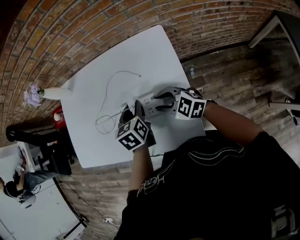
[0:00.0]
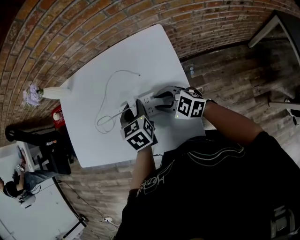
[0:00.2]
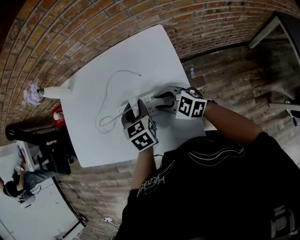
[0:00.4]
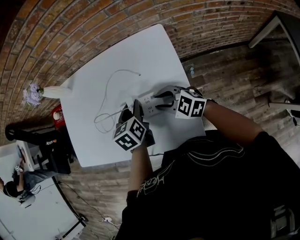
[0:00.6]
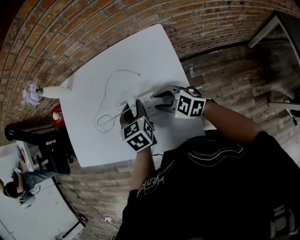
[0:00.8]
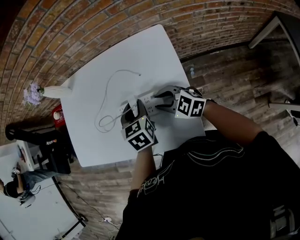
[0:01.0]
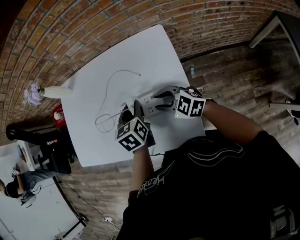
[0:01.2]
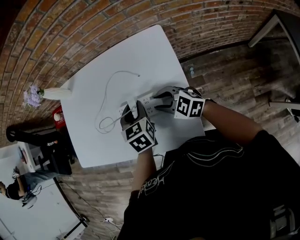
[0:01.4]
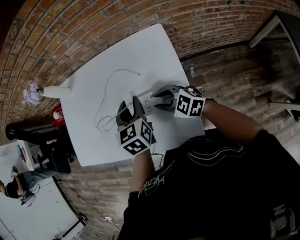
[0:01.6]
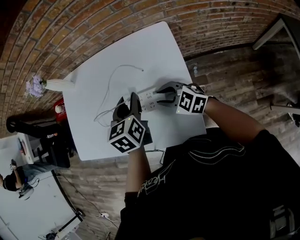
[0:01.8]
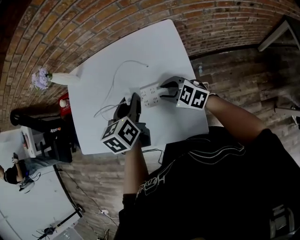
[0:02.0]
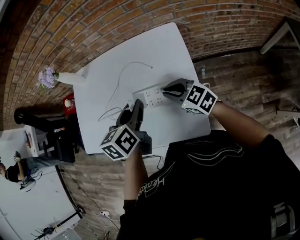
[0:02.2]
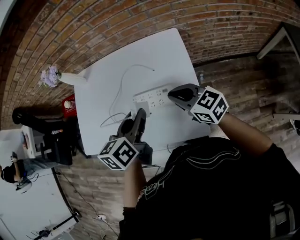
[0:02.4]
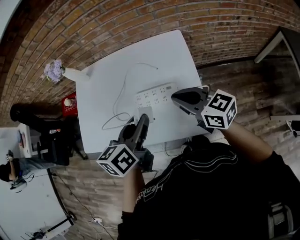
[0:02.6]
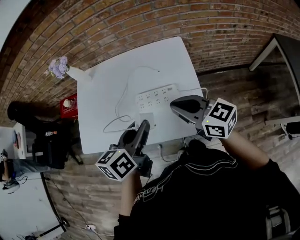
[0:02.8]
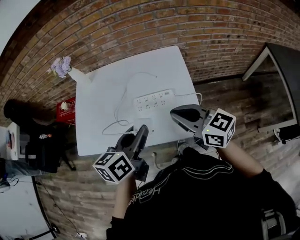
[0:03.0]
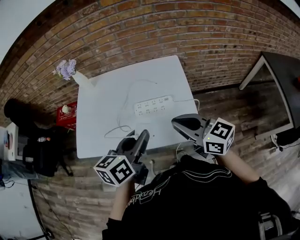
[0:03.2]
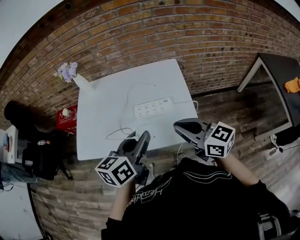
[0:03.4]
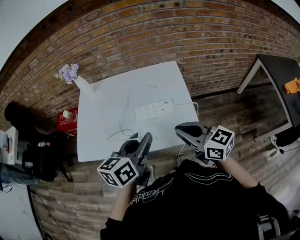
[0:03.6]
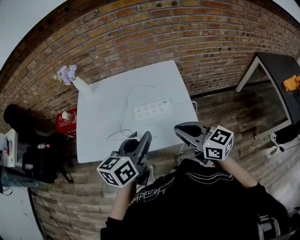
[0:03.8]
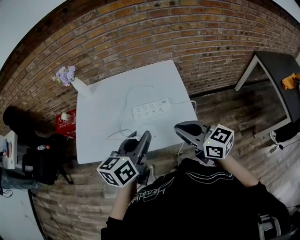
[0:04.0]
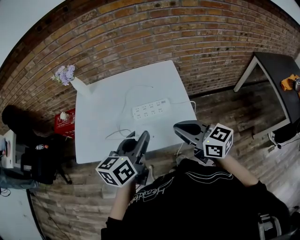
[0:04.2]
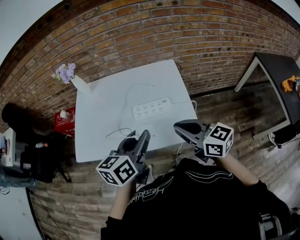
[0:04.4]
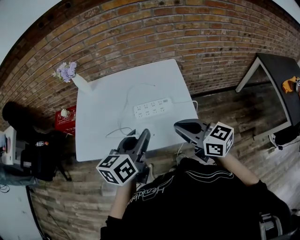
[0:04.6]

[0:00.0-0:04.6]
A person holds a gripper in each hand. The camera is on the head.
0:00.0 to 0:01.6: The left gripper shifts by approximately 5 cm.
0:01.6 to 0:03.0: The right gripper moves upward and backward, some 25 cm, turns by about 30 degrees, and closes up; the left gripper moves backward, upward and to the left, some 25 cm, and swivels roughly 40 degrees.
0:03.0 to 0:04.6: The right gripper shifts approximately 5 cm backward.

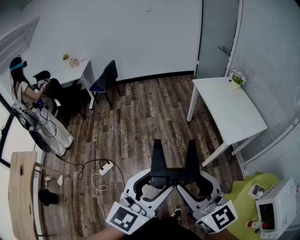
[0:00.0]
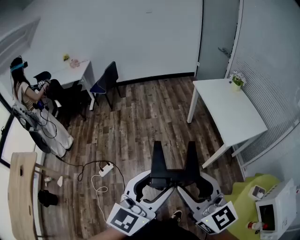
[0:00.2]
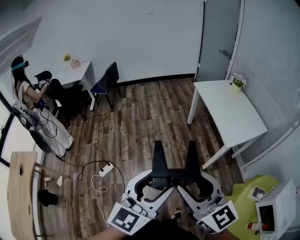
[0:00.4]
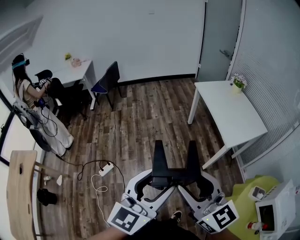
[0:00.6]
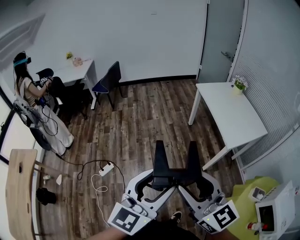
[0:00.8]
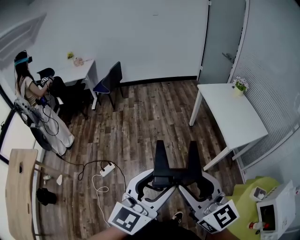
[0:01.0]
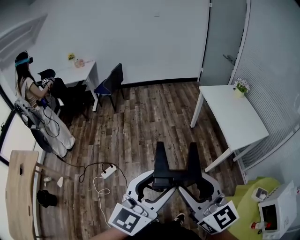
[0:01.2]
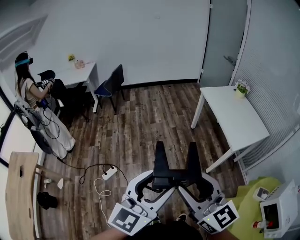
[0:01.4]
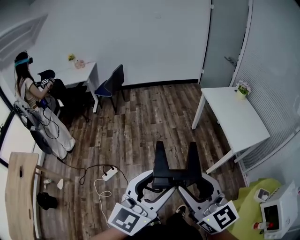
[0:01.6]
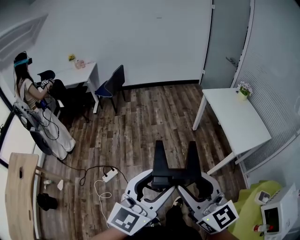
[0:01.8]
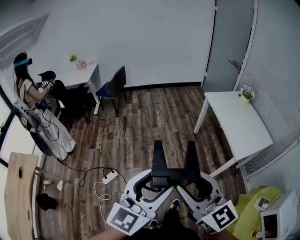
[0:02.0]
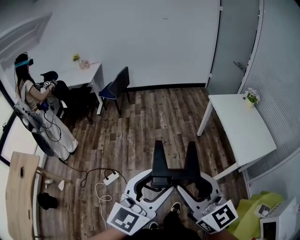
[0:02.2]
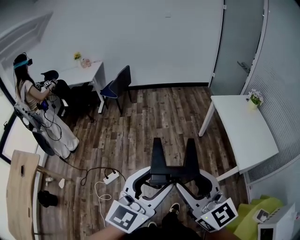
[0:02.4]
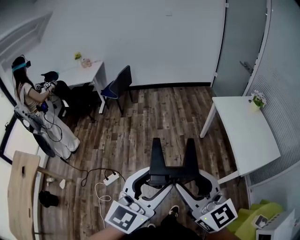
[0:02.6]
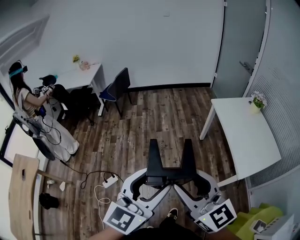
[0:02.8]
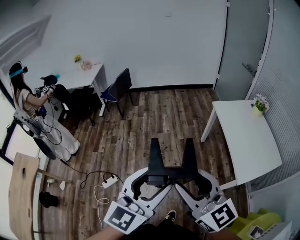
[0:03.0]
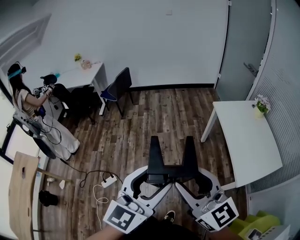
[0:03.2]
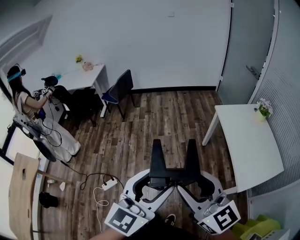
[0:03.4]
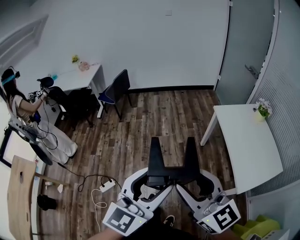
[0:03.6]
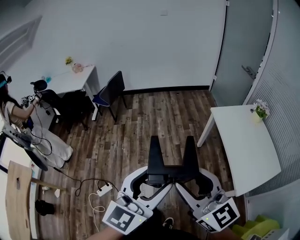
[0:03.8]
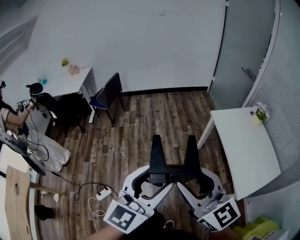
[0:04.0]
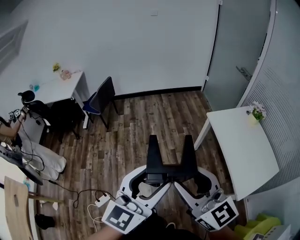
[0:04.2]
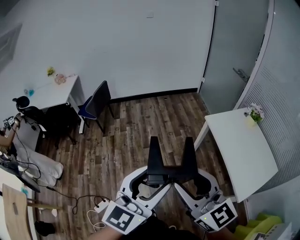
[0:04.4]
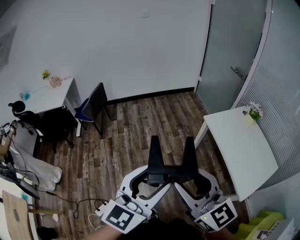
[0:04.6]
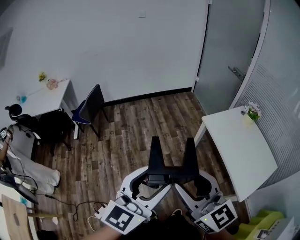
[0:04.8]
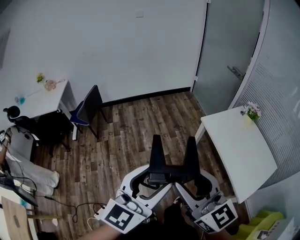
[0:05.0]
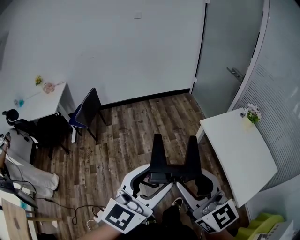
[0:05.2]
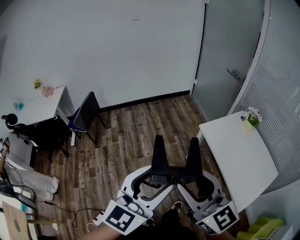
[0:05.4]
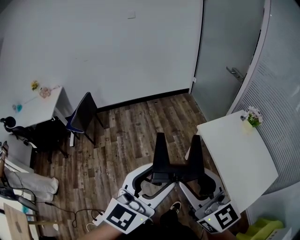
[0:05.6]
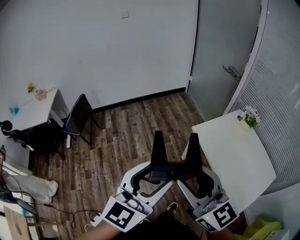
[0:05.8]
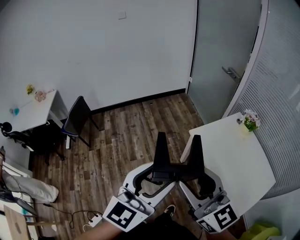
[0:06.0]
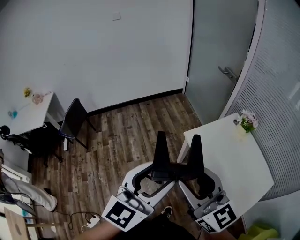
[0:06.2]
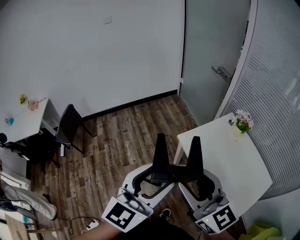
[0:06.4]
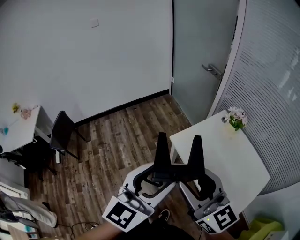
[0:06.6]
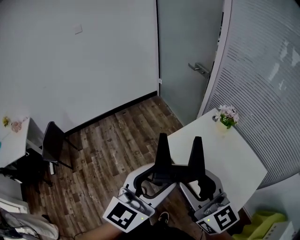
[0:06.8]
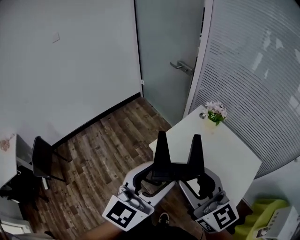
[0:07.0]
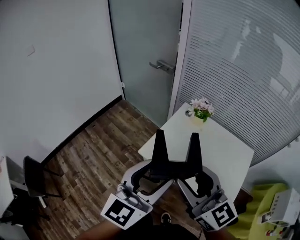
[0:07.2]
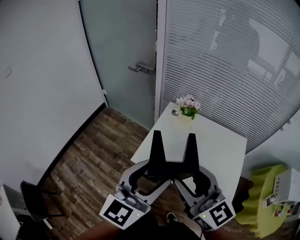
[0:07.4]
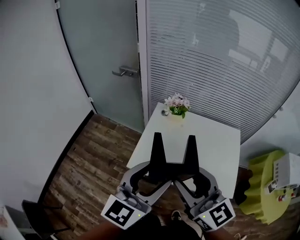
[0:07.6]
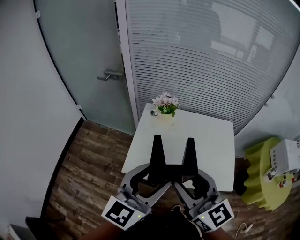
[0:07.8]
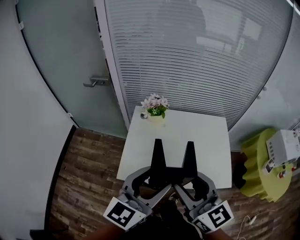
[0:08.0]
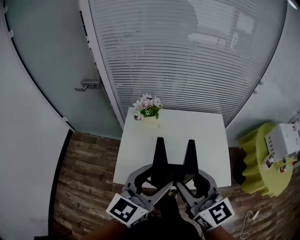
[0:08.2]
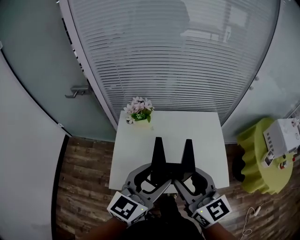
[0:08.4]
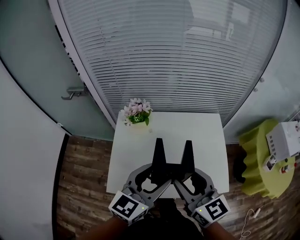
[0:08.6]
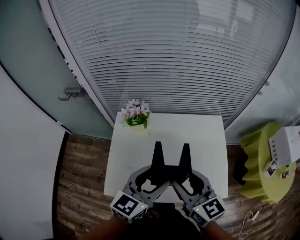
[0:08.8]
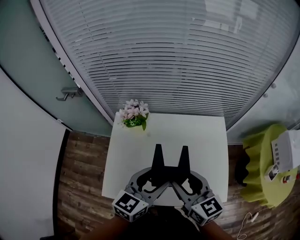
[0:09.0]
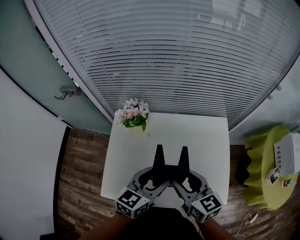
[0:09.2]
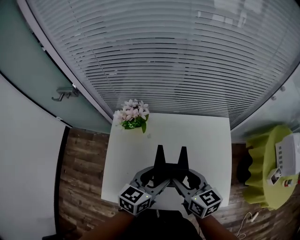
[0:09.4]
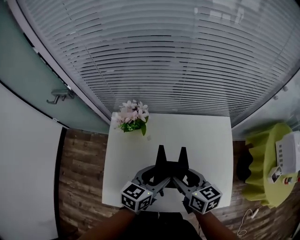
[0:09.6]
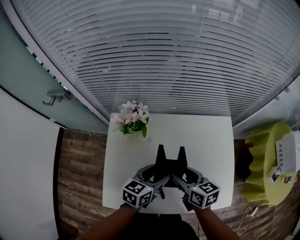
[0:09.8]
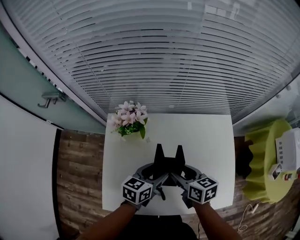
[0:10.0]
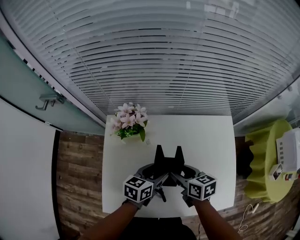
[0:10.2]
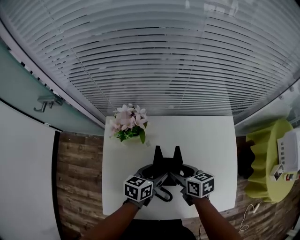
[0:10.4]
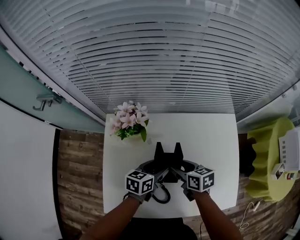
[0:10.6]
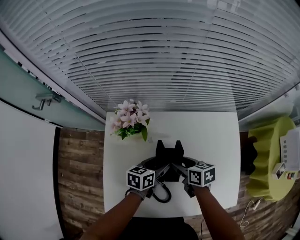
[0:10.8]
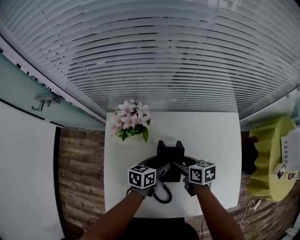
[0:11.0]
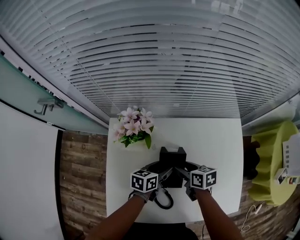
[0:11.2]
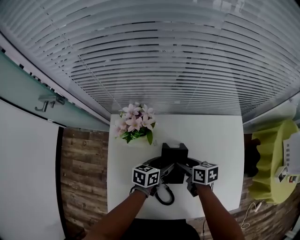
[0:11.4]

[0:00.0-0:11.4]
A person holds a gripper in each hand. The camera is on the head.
0:00.0 to 0:01.4: The two grippers go roughly 10 cm to the left.
0:01.4 to 0:02.8: The two grippers go some 20 cm forward.
0:02.8 to 0:04.2: Both grippers move forward, roughly 25 cm.
0:04.2 to 0:05.6: The two grippers go some 20 cm forward.
0:05.6 to 0:07.2: The left gripper changes place by roughly 35 cm, and swivels roughly 30 degrees. The right gripper changes place by some 30 cm, and rotates about 30 degrees.
0:07.2 to 0:08.6: The left gripper changes place by approximately 25 cm, and changes its angle by roughly 40 degrees. Meanwhile the right gripper changes place by about 25 cm, and rotates about 40 degrees.
0:08.6 to 0:10.0: Both grippers travel together downward and forward, roughly 30 cm. The right gripper turns by some 40 degrees, while the left gripper turns by approximately 30 degrees.
0:10.0 to 0:11.4: Both grippers move downward and forward, about 15 cm.

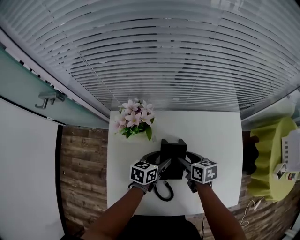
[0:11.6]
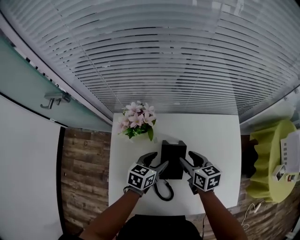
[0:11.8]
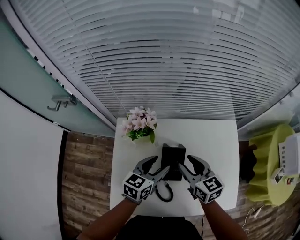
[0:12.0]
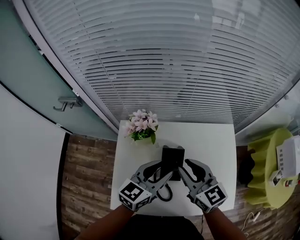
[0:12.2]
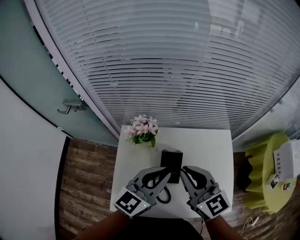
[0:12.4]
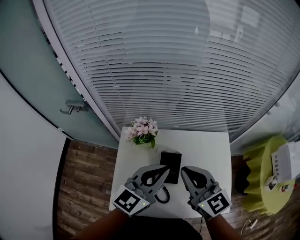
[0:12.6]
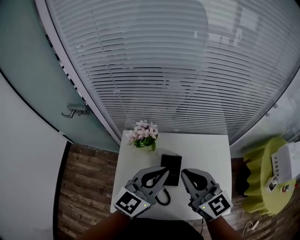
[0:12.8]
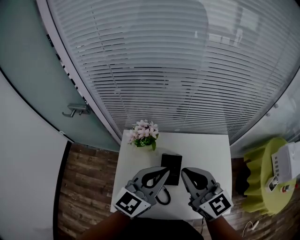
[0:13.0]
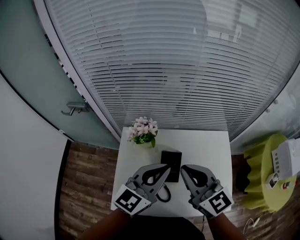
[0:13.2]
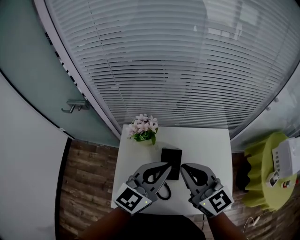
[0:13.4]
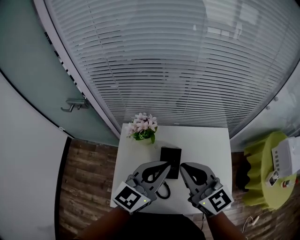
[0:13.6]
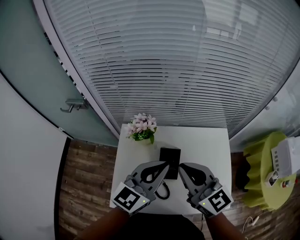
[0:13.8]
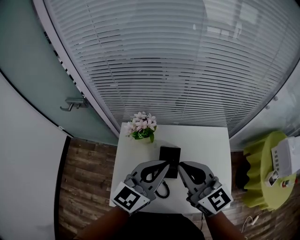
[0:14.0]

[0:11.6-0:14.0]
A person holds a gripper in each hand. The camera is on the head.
0:11.6 to 0:12.8: Both grippers move upward, roughly 35 cm. The left gripper swivels approximately 50 degrees, and closes up. The right gripper tilts its fingers approximately 40 degrees upward, and closes.
0:12.8 to 0:14.0: Both grippers stay put.

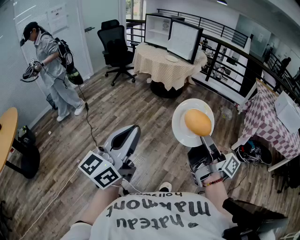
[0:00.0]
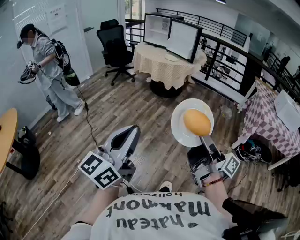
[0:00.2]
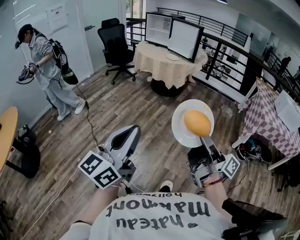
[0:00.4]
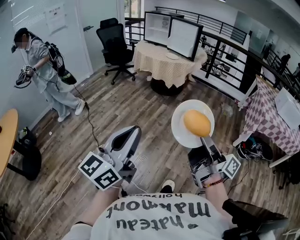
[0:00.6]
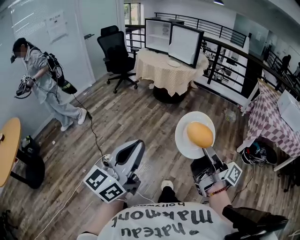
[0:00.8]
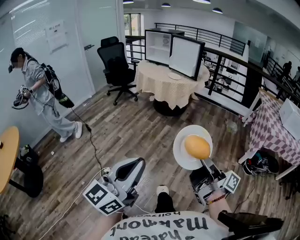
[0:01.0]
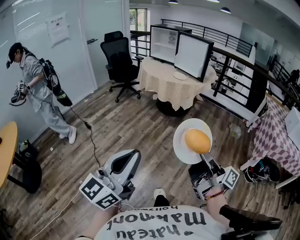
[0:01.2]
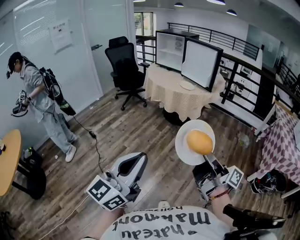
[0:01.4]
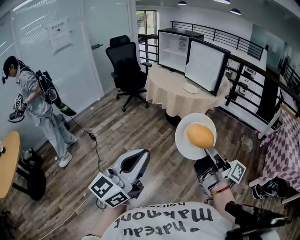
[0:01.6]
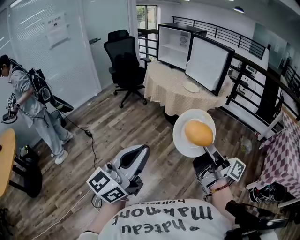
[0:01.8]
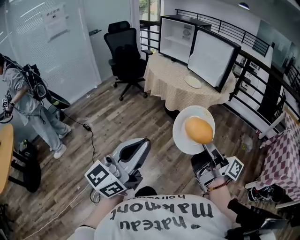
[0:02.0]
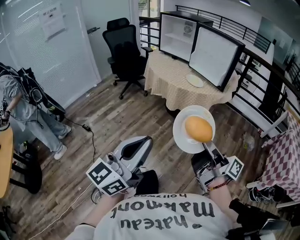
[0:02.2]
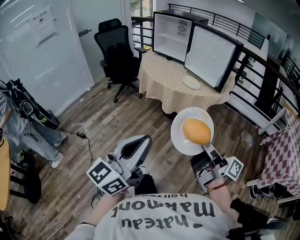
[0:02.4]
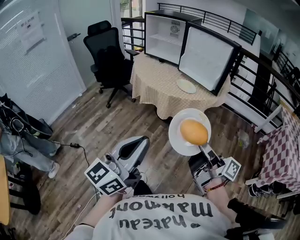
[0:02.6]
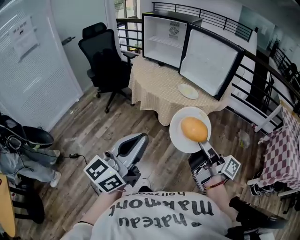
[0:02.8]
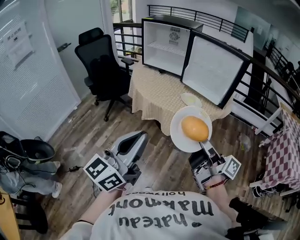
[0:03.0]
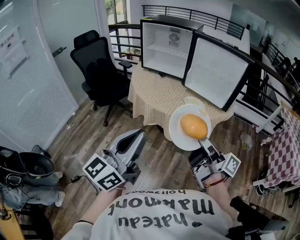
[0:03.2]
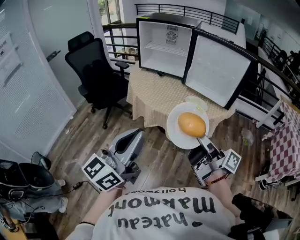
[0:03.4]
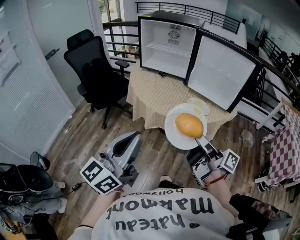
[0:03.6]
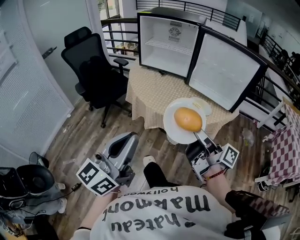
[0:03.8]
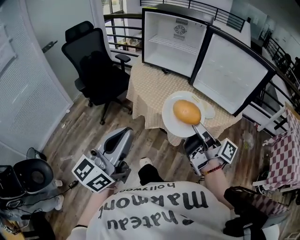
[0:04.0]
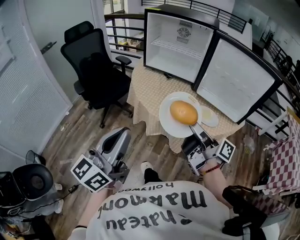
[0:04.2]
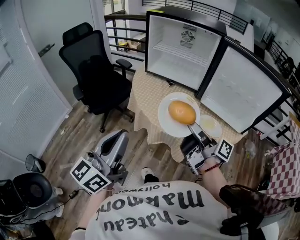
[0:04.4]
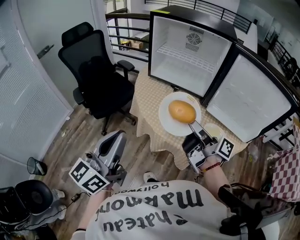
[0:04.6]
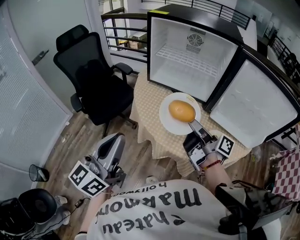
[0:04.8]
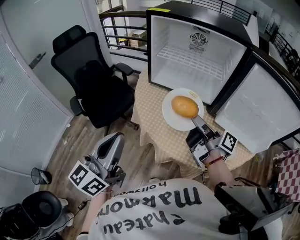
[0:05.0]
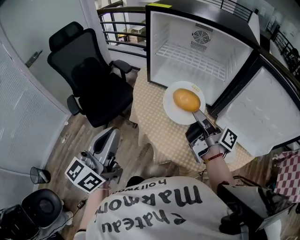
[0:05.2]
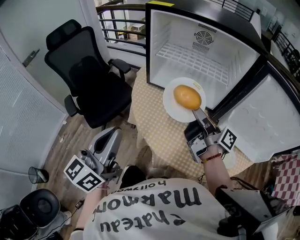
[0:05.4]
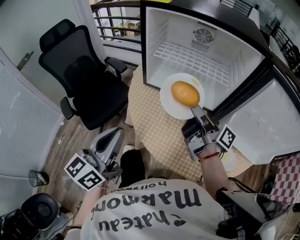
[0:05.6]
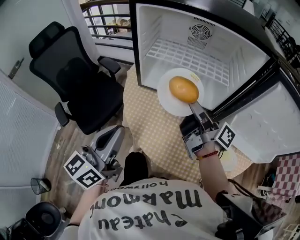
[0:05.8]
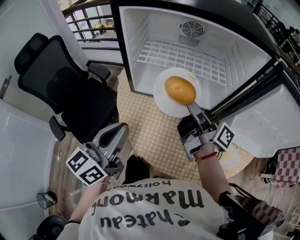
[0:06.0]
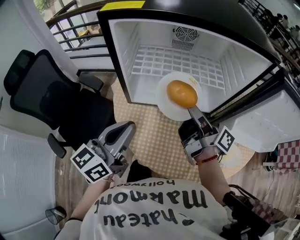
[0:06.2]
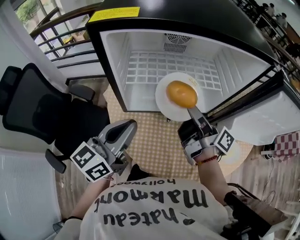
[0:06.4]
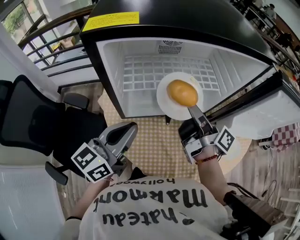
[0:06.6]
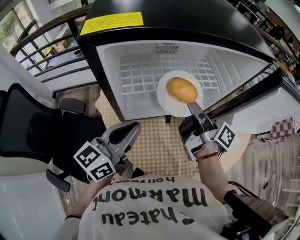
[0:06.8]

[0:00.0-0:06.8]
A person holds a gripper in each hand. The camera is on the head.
0:00.0 to 0:01.4: Both grippers travel together forward, roughly 25 cm.
0:01.4 to 0:02.8: The two grippers travel together, forward, approximately 40 cm.
0:02.8 to 0:04.0: The two grippers go about 30 cm forward and to the left.
0:04.0 to 0:05.4: Both grippers travel together forward, some 35 cm.
0:05.4 to 0:06.8: The left gripper moves roughly 30 cm, and rotates roughly 50 degrees. Meanwhile the right gripper shifts by some 15 cm, and rotates about 40 degrees.
